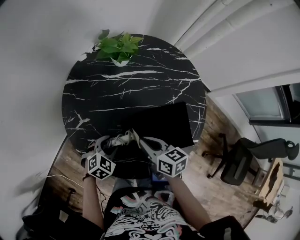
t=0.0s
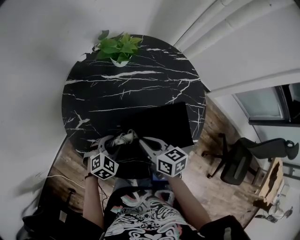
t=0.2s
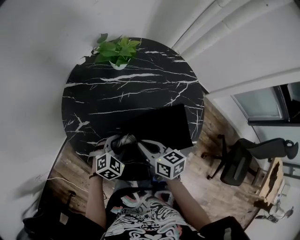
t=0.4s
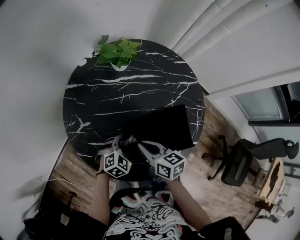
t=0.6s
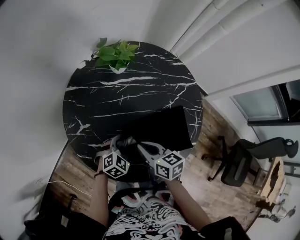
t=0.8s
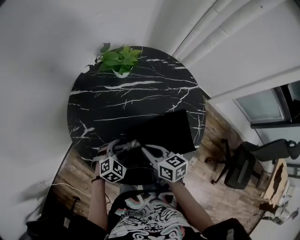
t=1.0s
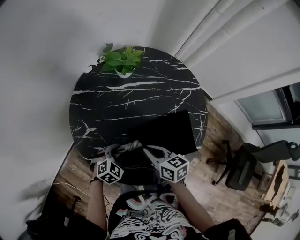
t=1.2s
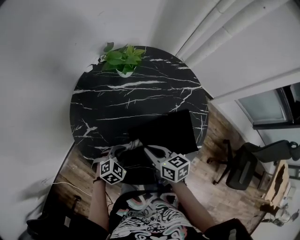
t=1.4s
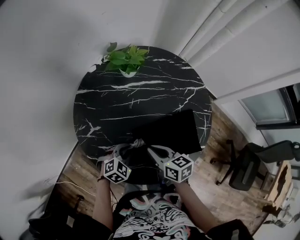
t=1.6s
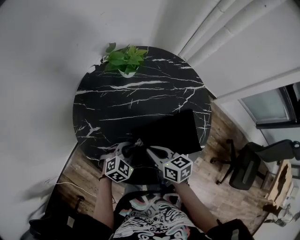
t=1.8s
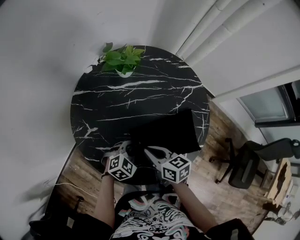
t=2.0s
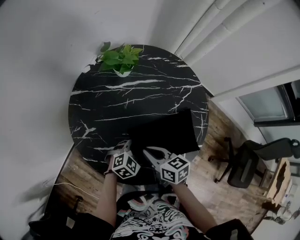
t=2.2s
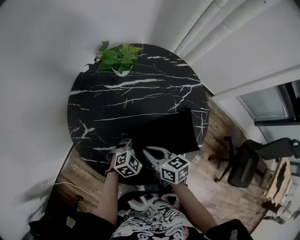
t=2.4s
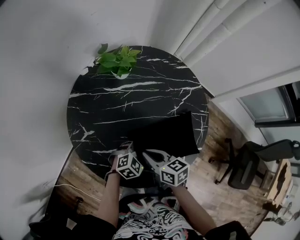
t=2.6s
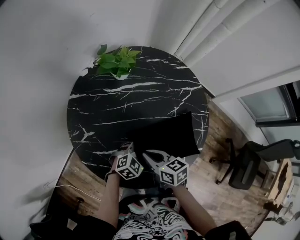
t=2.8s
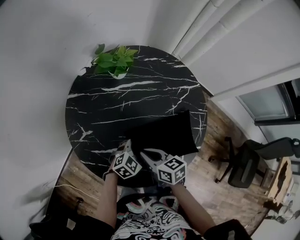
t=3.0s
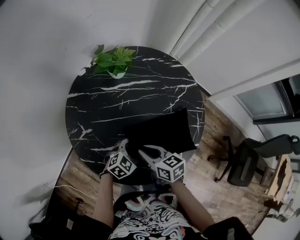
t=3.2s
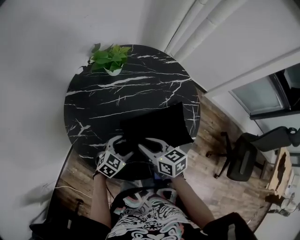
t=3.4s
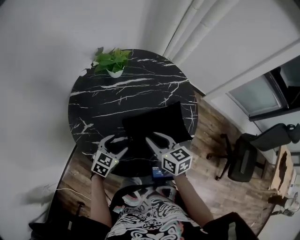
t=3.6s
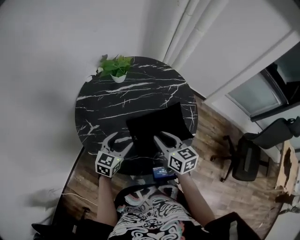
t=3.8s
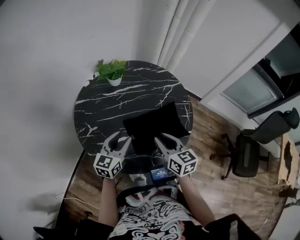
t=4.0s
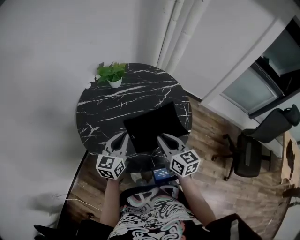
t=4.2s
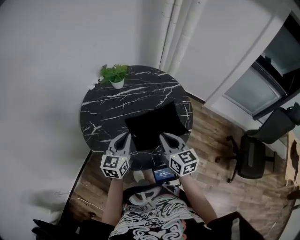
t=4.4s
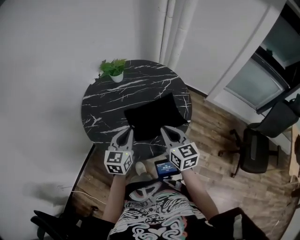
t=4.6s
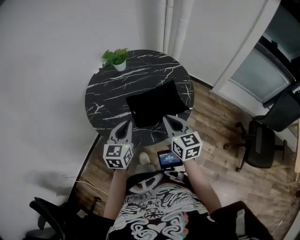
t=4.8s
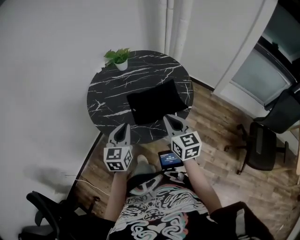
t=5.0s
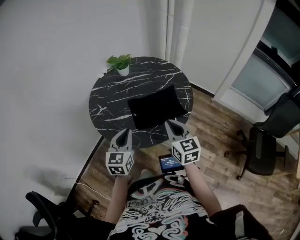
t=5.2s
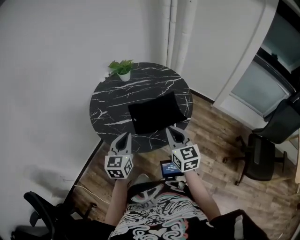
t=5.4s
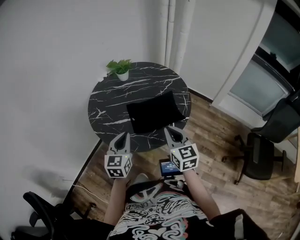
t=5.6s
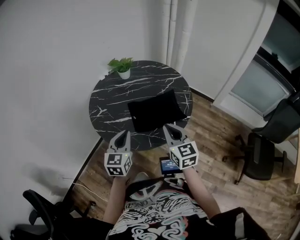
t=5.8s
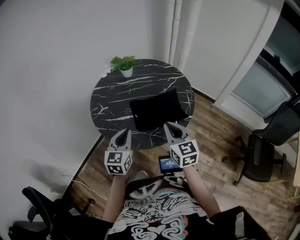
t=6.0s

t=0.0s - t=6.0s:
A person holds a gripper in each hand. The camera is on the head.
t=0.0s - t=1.6s: The left gripper closes.
t=1.6s - t=3.0s: The left gripper moves to the right, about 10 cm, and opens up.
t=3.0s - t=4.4s: The left gripper heads upward, covering some 20 cm, swivels about 50 degrees, and closes its fingers, while the right gripper moves upward, to the right and backward, roughly 20 cm, and swivels some 40 degrees.
t=4.4s - t=6.0s: The grippers both shift backward by some 10 cm.

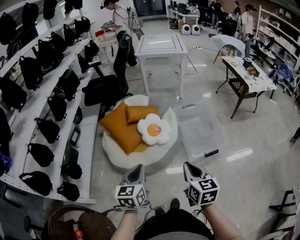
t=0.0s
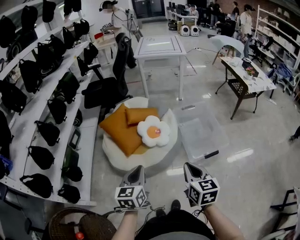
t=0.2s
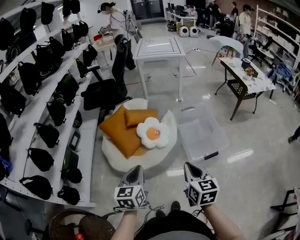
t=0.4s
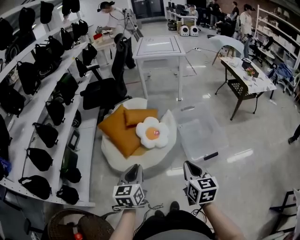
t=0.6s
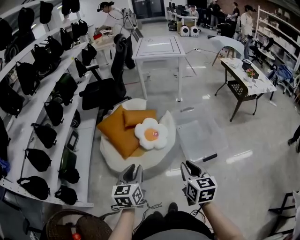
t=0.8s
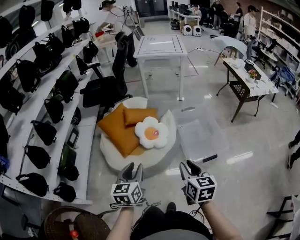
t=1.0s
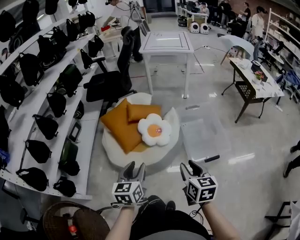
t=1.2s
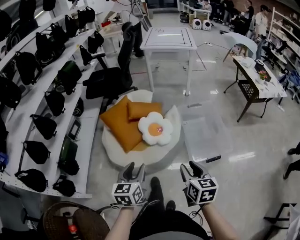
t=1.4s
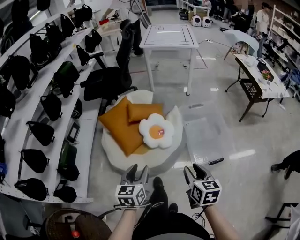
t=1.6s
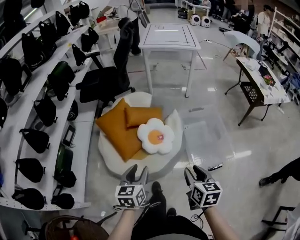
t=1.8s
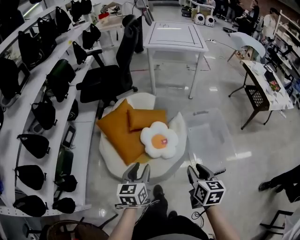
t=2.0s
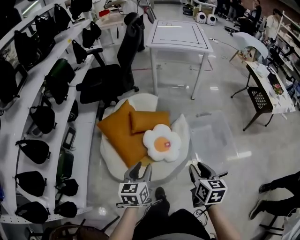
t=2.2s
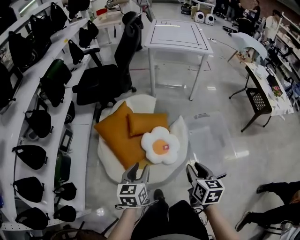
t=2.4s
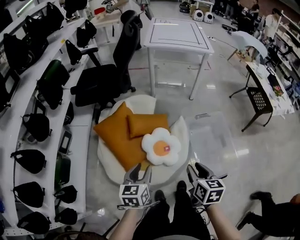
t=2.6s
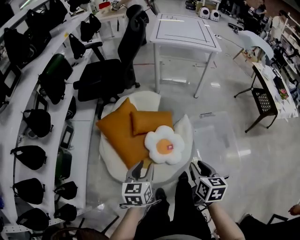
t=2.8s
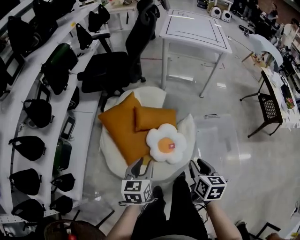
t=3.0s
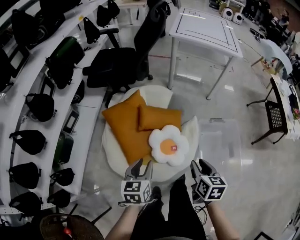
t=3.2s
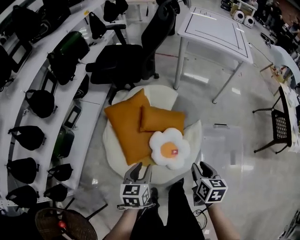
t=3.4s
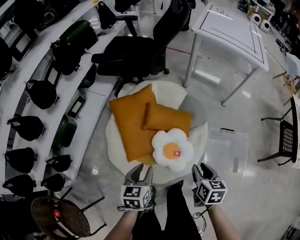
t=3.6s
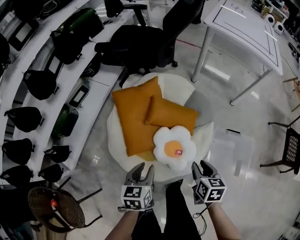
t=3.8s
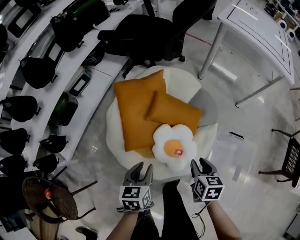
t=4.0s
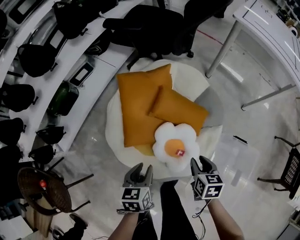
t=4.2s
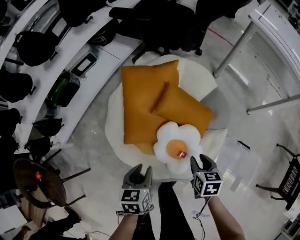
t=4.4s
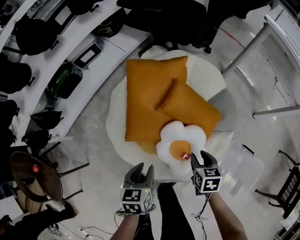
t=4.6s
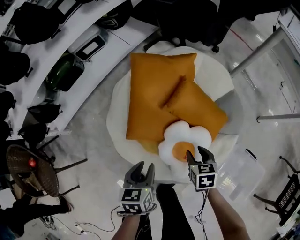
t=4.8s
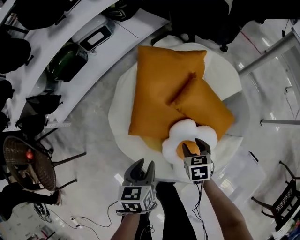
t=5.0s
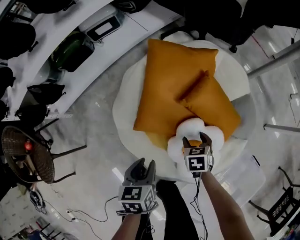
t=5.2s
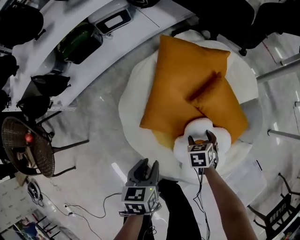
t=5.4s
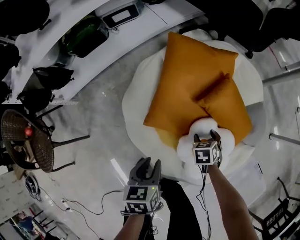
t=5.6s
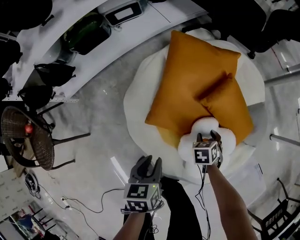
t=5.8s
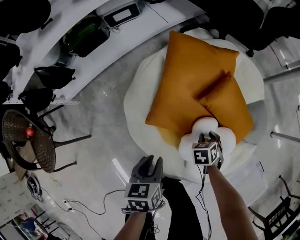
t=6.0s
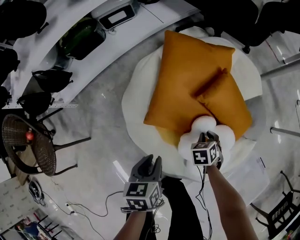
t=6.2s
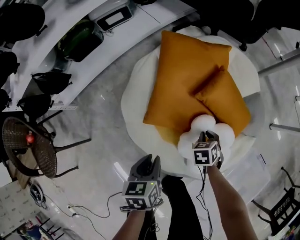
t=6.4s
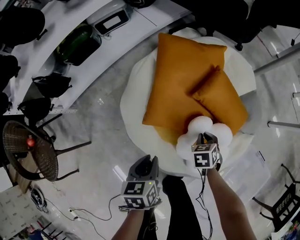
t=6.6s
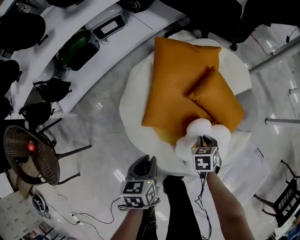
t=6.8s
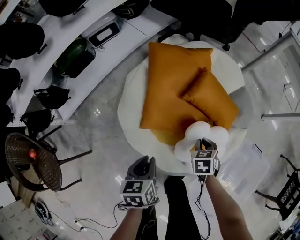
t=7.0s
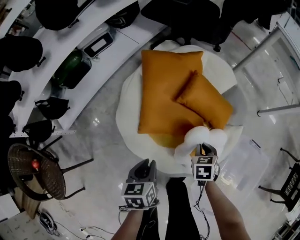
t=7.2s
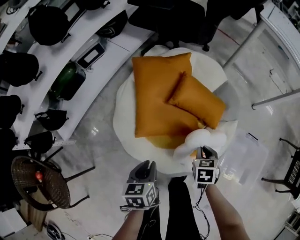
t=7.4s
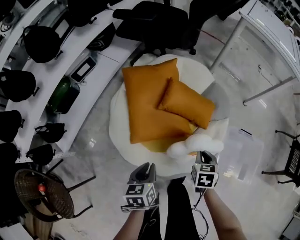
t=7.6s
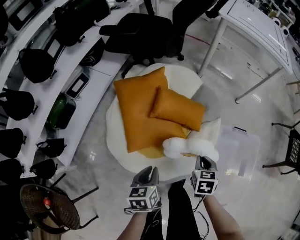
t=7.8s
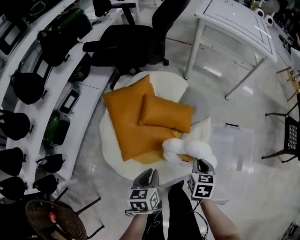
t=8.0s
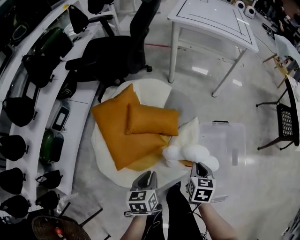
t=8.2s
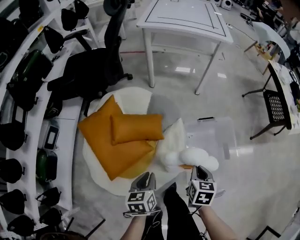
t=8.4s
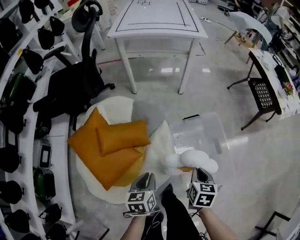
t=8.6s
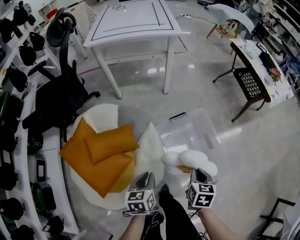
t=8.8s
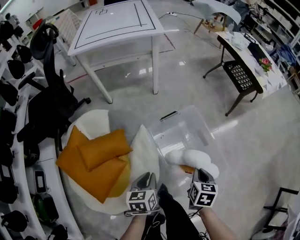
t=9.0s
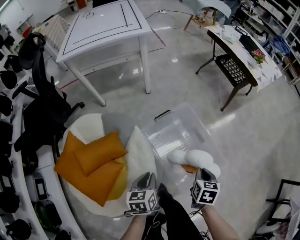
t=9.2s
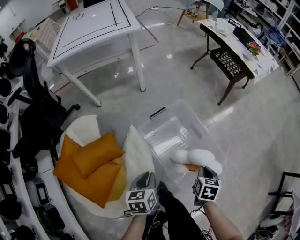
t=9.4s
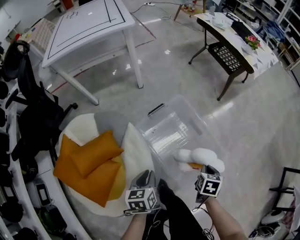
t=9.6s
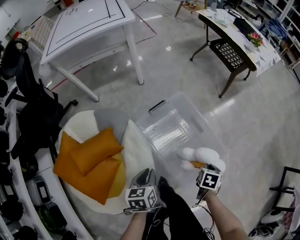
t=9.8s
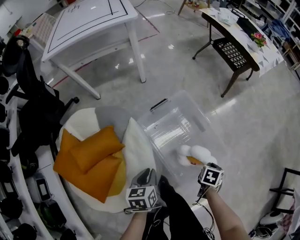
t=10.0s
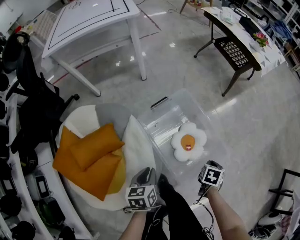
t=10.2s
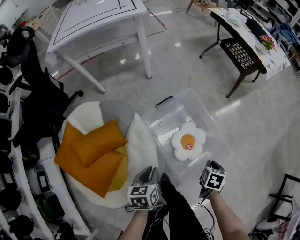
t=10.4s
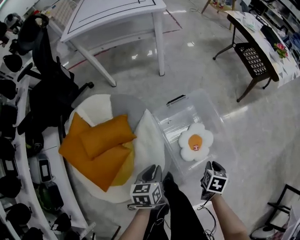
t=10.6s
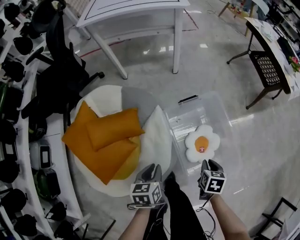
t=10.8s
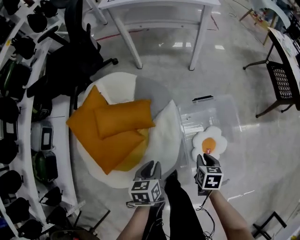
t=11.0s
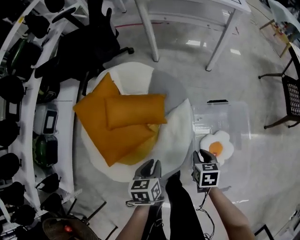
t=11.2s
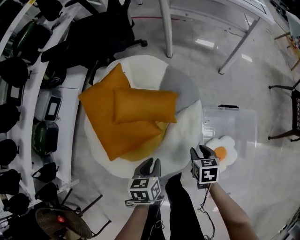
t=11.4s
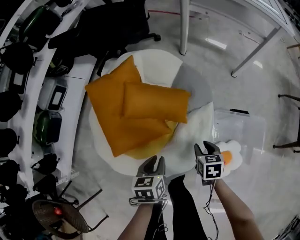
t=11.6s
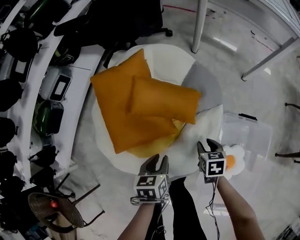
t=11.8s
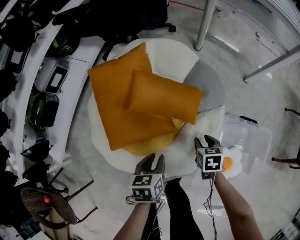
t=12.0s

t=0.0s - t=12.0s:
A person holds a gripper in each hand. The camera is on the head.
t=0.0s - t=1.6s: The grippers both shift forward and downward by some 10 cm. The left gripper opens up; the right gripper opens.
t=1.6s - t=3.0s: Both grippers move forward, some 25 cm.
t=3.0s - t=4.4s: Both grippers move downward, approximately 20 cm. The right gripper changes its angle by about 40 degrees. The left gripper changes its angle by roughly 40 degrees.
t=4.4s - t=6.0s: The left gripper moves to the left and downward, about 15 cm, and swivels approximately 20 degrees. Meanwhile the right gripper is displaced downward, to the left and forward by some 25 cm, swivels some 40 degrees, and opens, then closes again.
t=6.0s - t=7.6s: The right gripper moves upward, backward and to the right, approximately 25 cm, swivels about 40 degrees, and closes up. Meanwhile the left gripper goes some 10 cm upward, and rotates roughly 20 degrees.
t=7.6s - t=9.0s: The left gripper changes place by roughly 35 cm, and turns by approximately 50 degrees, while the right gripper changes place by roughly 40 cm, and rotates around the line of its fingers by roughly 50 degrees, clockwise from behind.
t=9.0s - t=10.4s: The right gripper shifts by some 15 cm, and swivels some 20 degrees; the left gripper moves some 5 cm.
t=10.4s - t=12.0s: The left gripper ends up roughly 30 cm from where it was, and changes its angle by about 40 degrees. Meanwhile the right gripper changes place by some 50 cm, rotates around the line of its fingers by approximately 60 degrees, counterclockwise from behind, and opens its fingers.

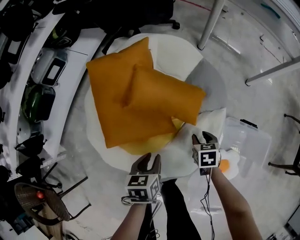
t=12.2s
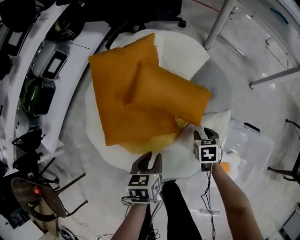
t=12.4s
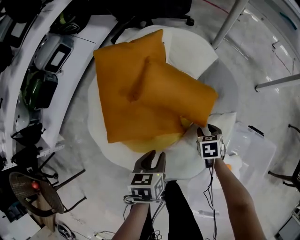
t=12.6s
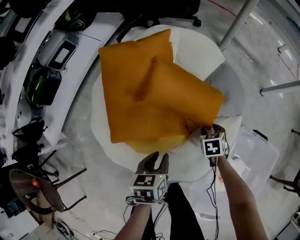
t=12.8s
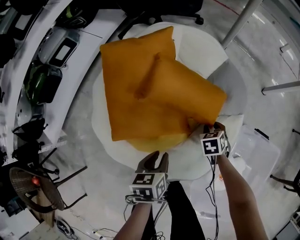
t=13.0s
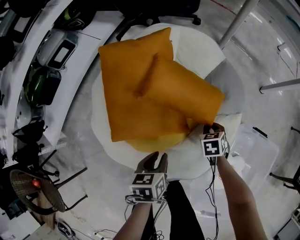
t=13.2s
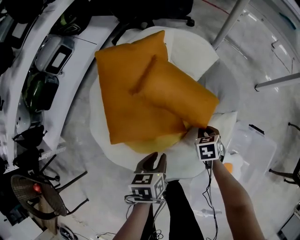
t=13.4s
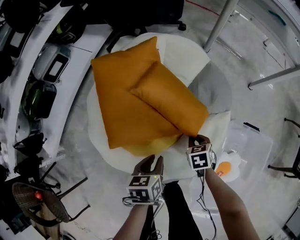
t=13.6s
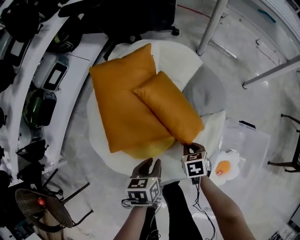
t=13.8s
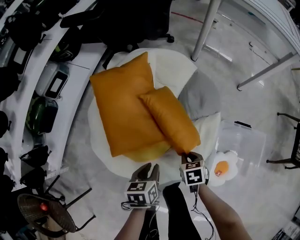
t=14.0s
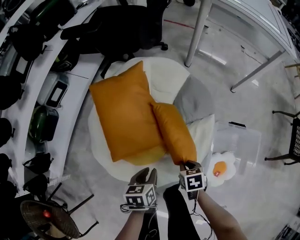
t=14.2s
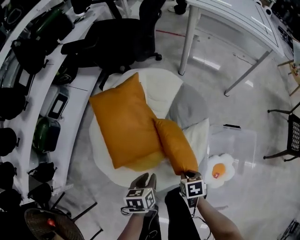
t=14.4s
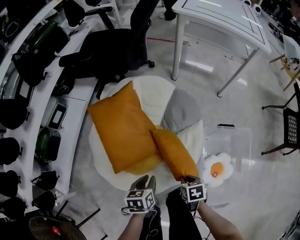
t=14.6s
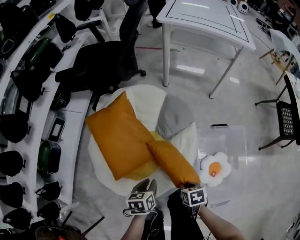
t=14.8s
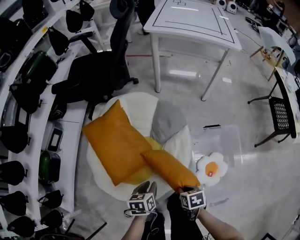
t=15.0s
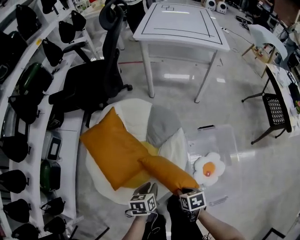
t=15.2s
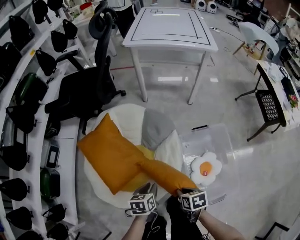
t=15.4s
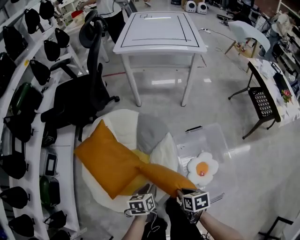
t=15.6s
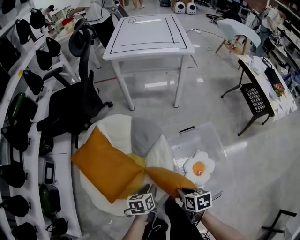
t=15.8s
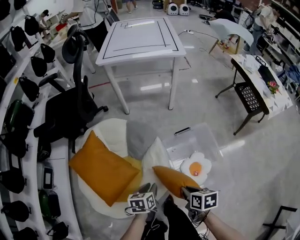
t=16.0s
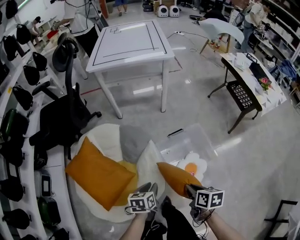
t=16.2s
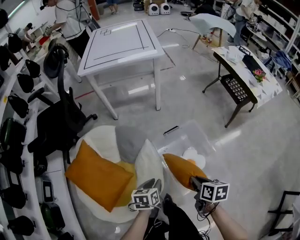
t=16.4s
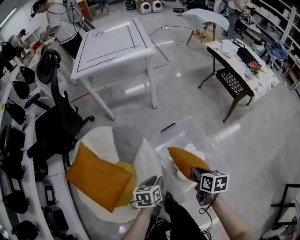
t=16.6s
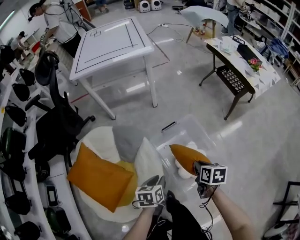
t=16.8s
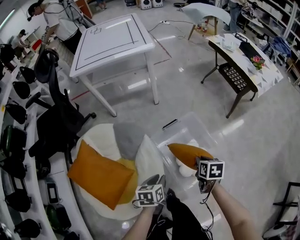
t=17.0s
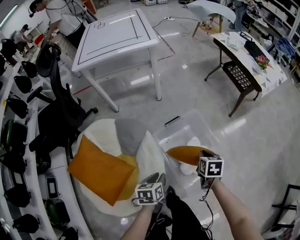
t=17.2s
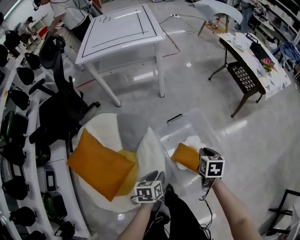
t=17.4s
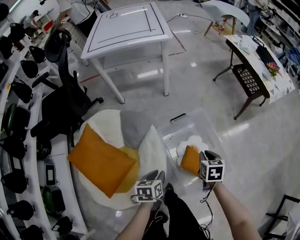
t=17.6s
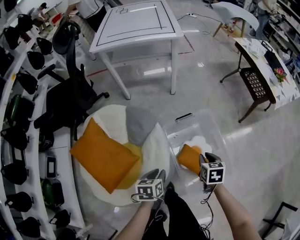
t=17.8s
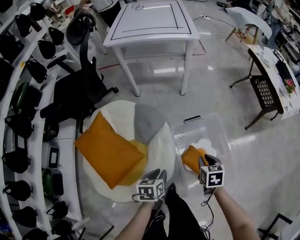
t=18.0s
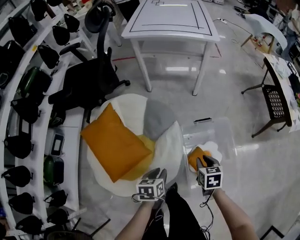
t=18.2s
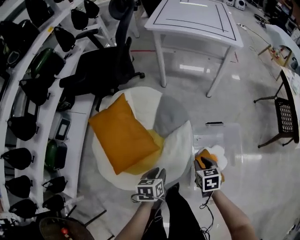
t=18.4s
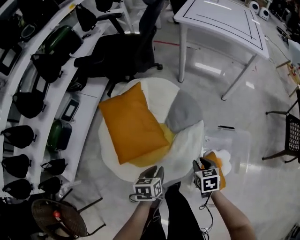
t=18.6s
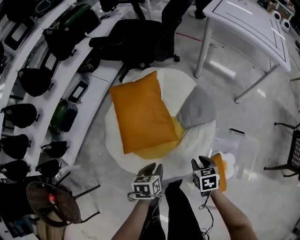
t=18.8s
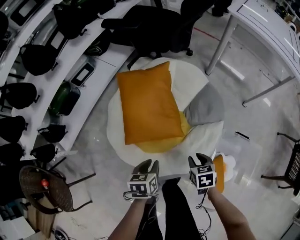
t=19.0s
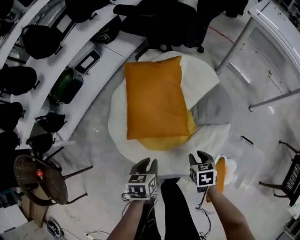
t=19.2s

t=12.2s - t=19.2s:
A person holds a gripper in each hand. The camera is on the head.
t=12.2s - t=13.6s: The right gripper heads to the left, covering about 5 cm, and closes up.
t=13.6s - t=15.0s: The left gripper shifts approximately 15 cm upward and backward, and changes its angle by approximately 20 degrees, while the right gripper is displaced upward and backward by approximately 30 cm, and swivels about 30 degrees.
t=15.0s - t=16.4s: The right gripper ends up some 25 cm from where it was, and rotates about 40 degrees, while the left gripper moves some 20 cm, and turns by about 30 degrees.
t=16.4s - t=17.8s: The right gripper is displaced forward and downward by roughly 10 cm, and rotates about 30 degrees.
t=17.8s - t=19.2s: The left gripper changes place by approximately 30 cm, and turns by about 50 degrees. Meanwhile the right gripper moves about 40 cm, and twists about 50 degrees counterclockwise, seen from behind.
